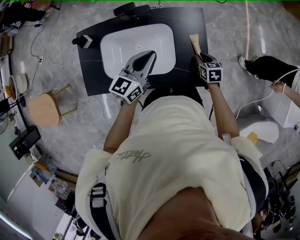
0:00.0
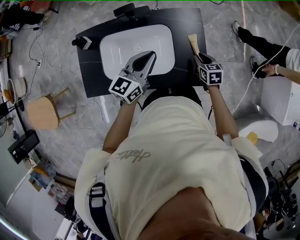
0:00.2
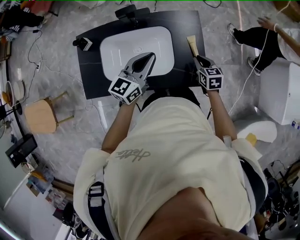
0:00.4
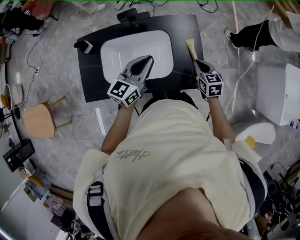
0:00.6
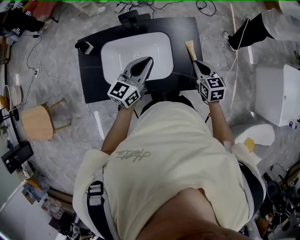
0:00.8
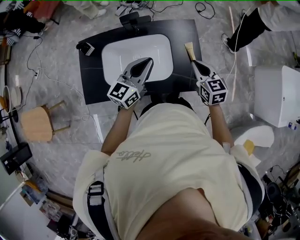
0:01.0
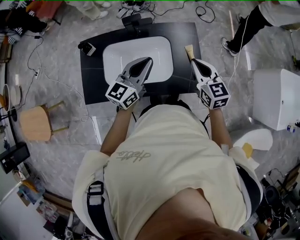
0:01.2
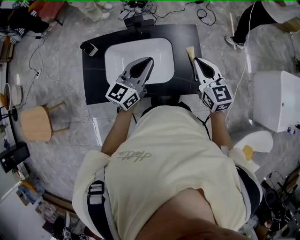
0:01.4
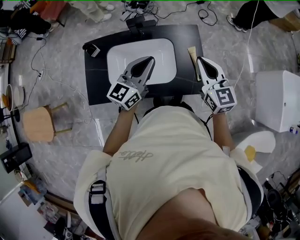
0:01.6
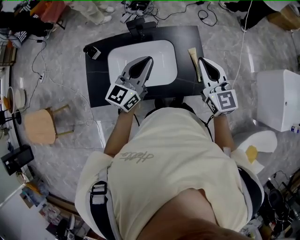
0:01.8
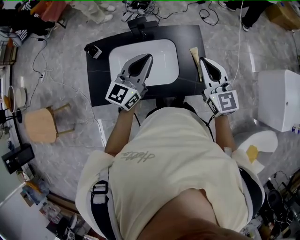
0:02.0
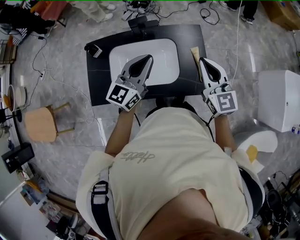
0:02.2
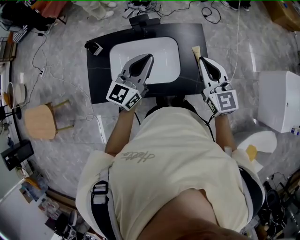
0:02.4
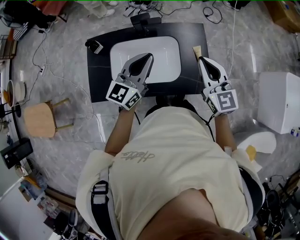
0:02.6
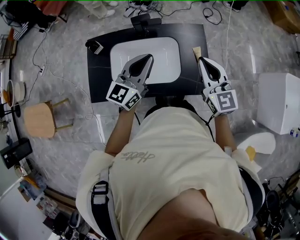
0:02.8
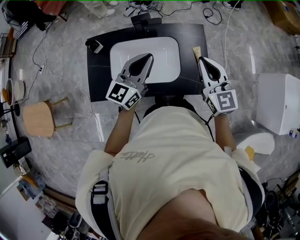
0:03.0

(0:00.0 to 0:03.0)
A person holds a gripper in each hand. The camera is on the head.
0:00.0 - 0:01.6: The left gripper shifts roughly 10 cm upward and backward; the right gripper goes approximately 30 cm upward, and tips its fingers upward by approximately 40 degrees.
0:01.6 - 0:03.0: The grippers stay close to where they were, moving slightly.

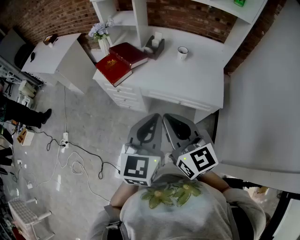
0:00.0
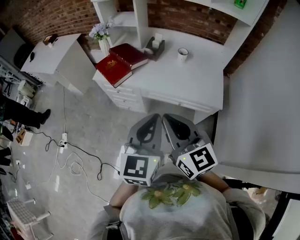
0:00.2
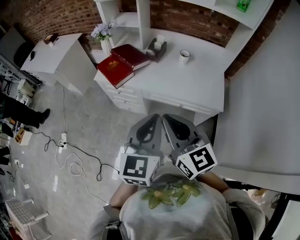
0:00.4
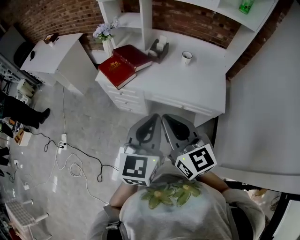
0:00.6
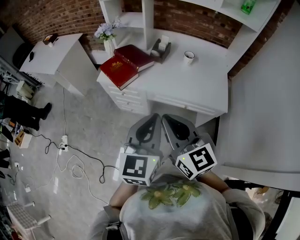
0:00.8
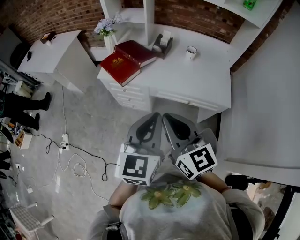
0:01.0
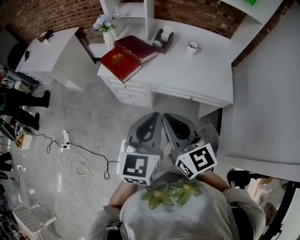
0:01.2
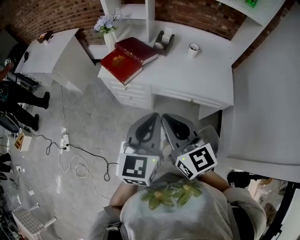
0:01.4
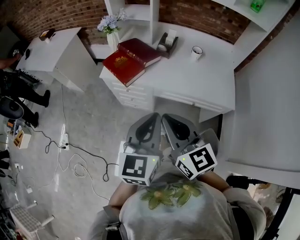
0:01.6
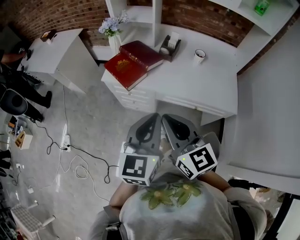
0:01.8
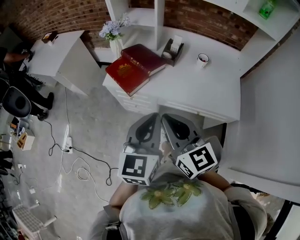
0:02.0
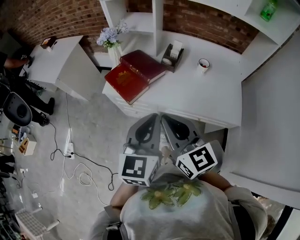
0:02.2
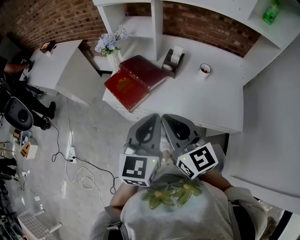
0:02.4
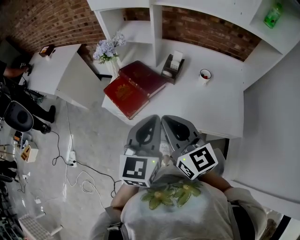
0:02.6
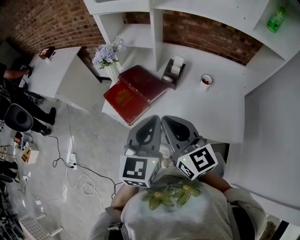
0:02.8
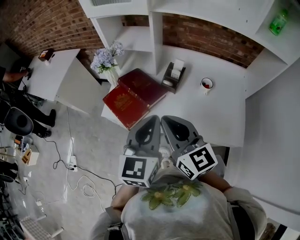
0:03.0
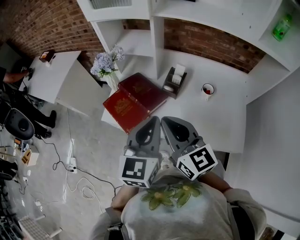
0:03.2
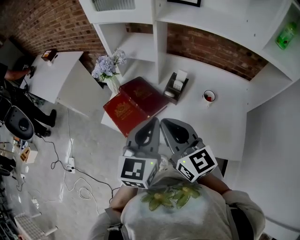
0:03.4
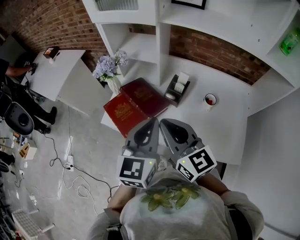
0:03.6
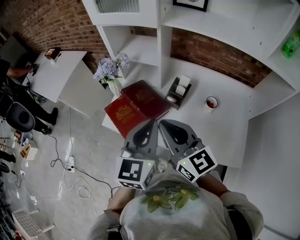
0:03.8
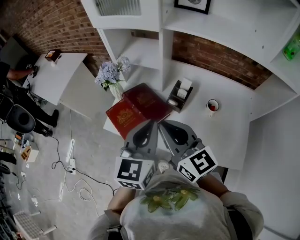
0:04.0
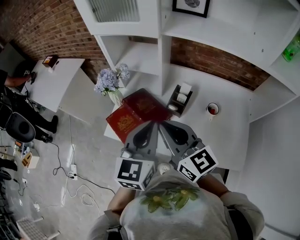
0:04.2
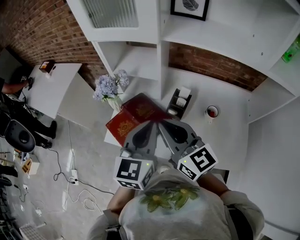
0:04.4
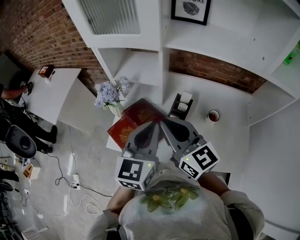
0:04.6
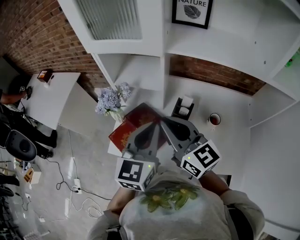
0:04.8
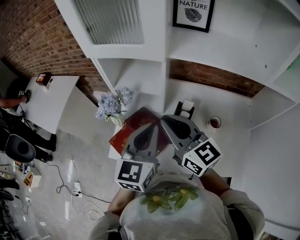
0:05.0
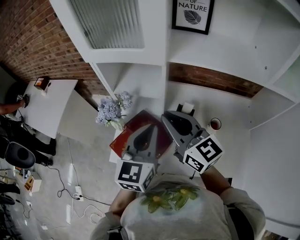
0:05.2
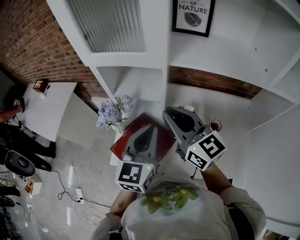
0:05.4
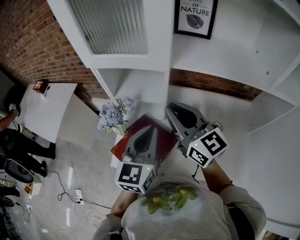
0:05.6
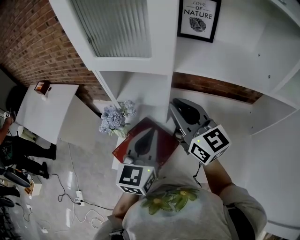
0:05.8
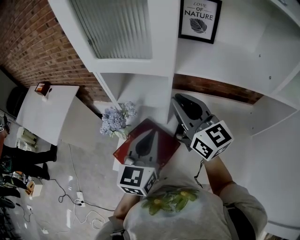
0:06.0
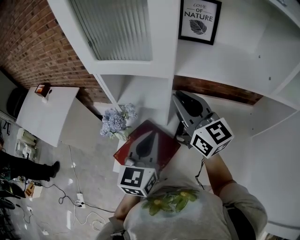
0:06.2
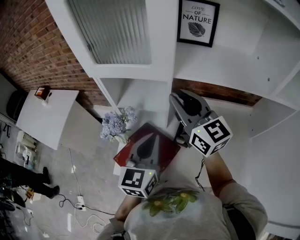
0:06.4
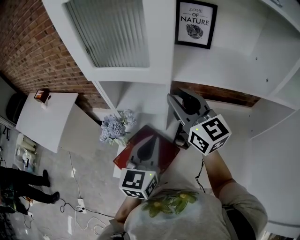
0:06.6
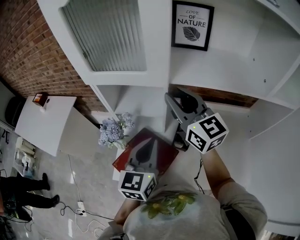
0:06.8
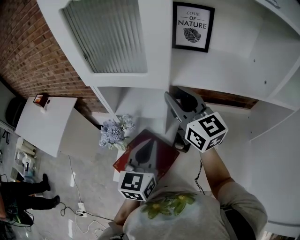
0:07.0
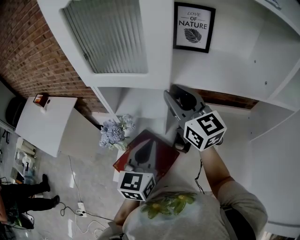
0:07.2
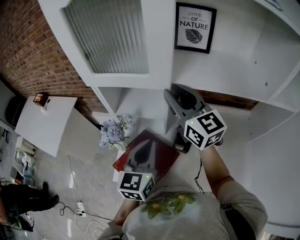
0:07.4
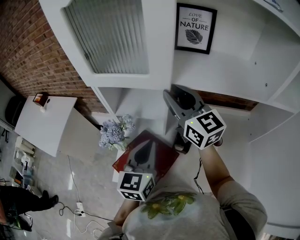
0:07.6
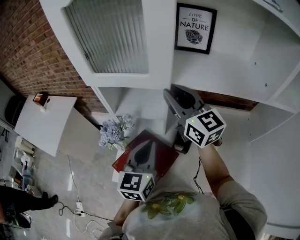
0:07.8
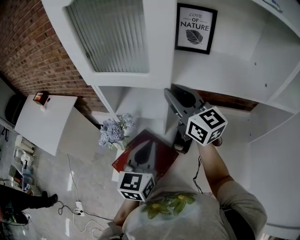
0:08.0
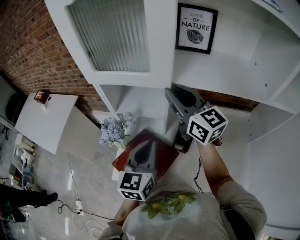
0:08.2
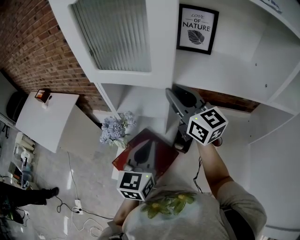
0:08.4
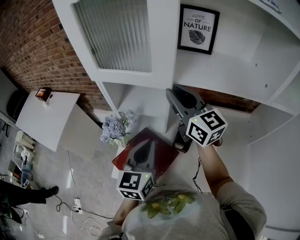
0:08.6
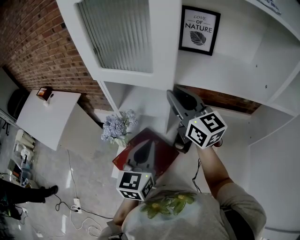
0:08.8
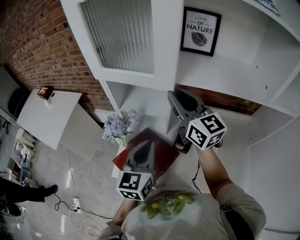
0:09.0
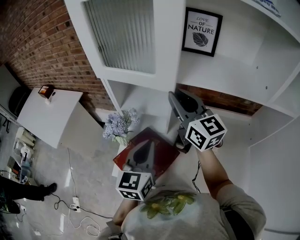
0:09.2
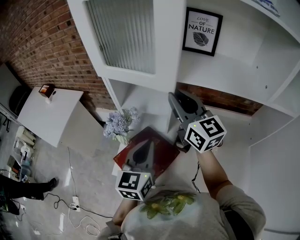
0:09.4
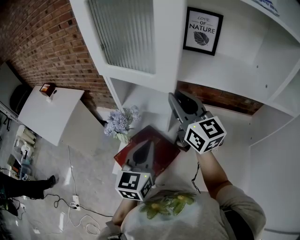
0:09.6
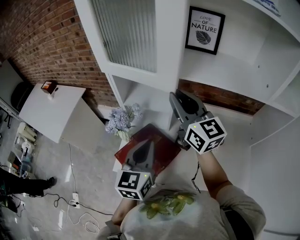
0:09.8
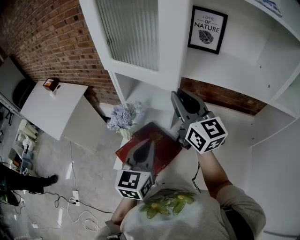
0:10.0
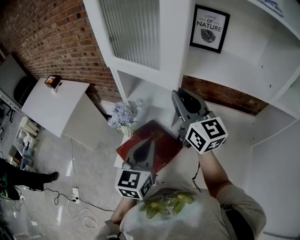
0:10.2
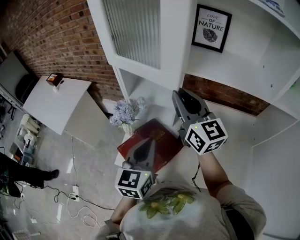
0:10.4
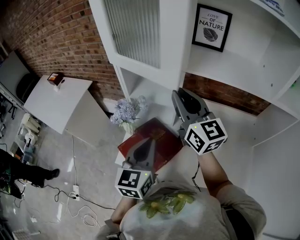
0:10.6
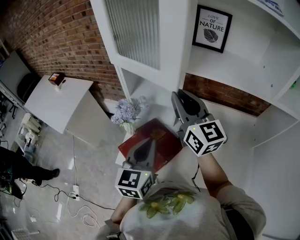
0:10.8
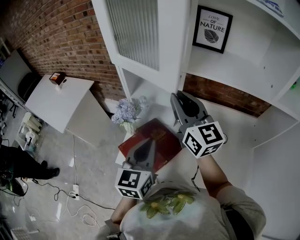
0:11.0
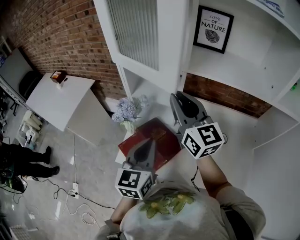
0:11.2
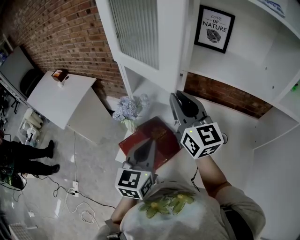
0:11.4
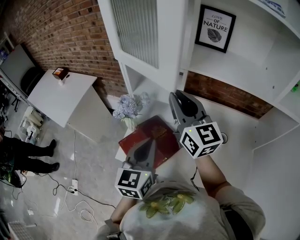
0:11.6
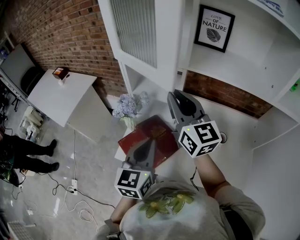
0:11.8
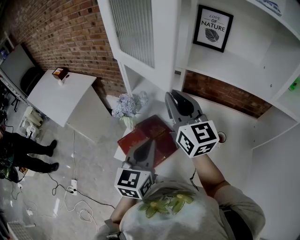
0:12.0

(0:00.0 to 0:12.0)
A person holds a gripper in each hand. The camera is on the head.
0:00.0 - 0:01.6: The two grippers go roughly 15 cm to the left and forward.
0:01.6 - 0:03.0: The grippers both shift forward by roughly 25 cm.
0:03.0 - 0:04.4: The grippers both shift forward by some 15 cm.
0:04.4 - 0:06.0: The left gripper heads forward, covering roughly 10 cm. The right gripper moves forward and upward, approximately 20 cm.
0:06.0 - 0:07.6: The right gripper goes roughly 5 cm forward.
0:07.6 - 0:09.0: The grippers stay close to where they were, moving slightly.
0:09.0 - 0:10.4: The left gripper moves about 5 cm, while the right gripper changes place by some 5 cm.
0:10.4 - 0:12.0: The grippers stay close to where they were, moving slightly.

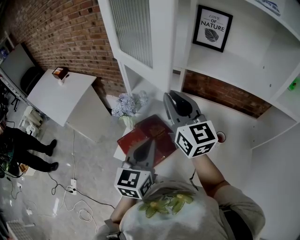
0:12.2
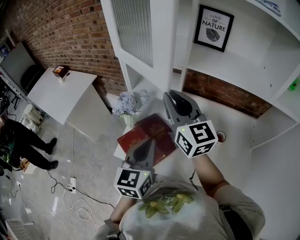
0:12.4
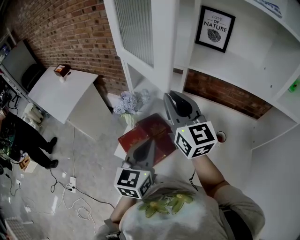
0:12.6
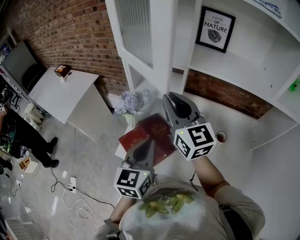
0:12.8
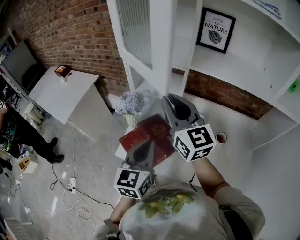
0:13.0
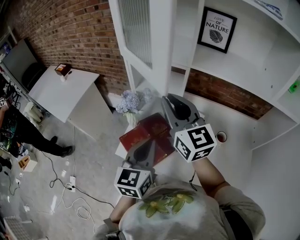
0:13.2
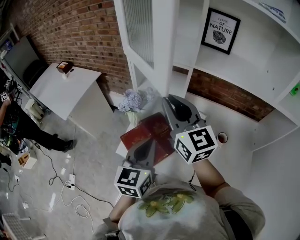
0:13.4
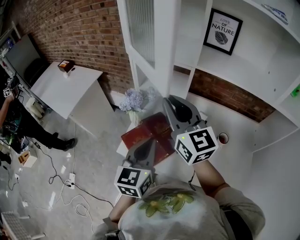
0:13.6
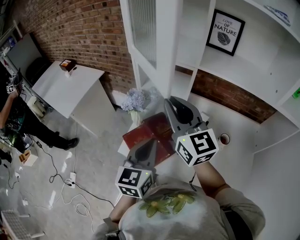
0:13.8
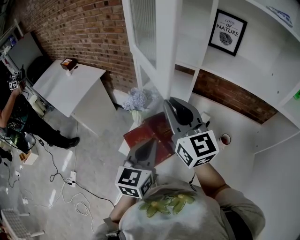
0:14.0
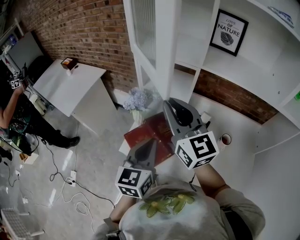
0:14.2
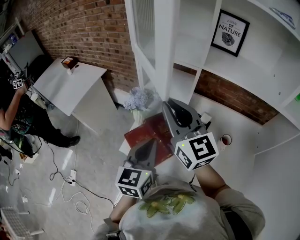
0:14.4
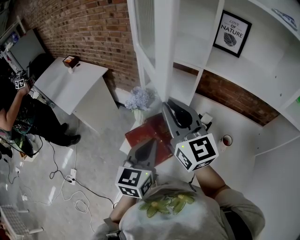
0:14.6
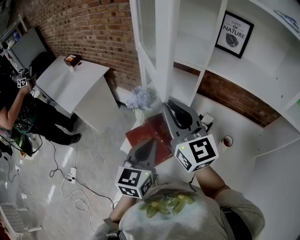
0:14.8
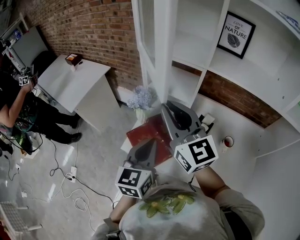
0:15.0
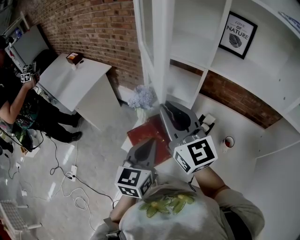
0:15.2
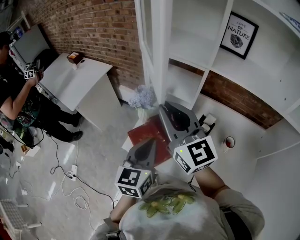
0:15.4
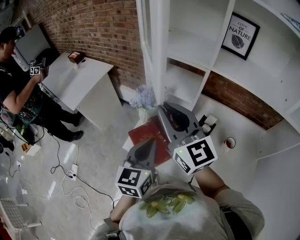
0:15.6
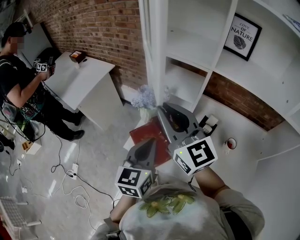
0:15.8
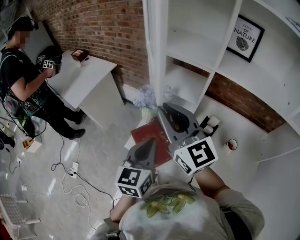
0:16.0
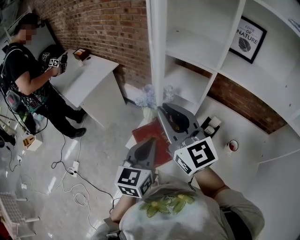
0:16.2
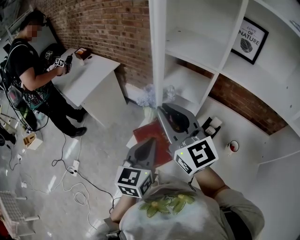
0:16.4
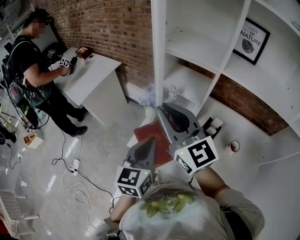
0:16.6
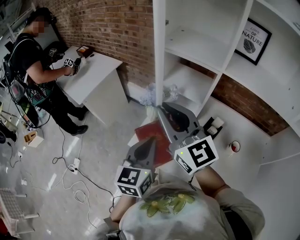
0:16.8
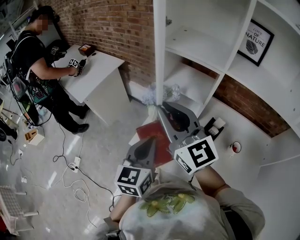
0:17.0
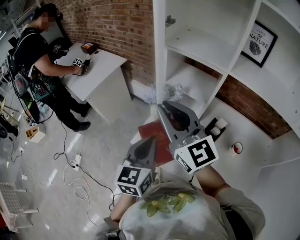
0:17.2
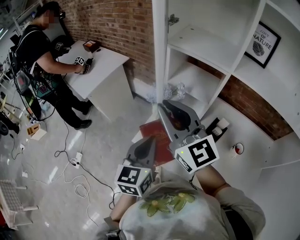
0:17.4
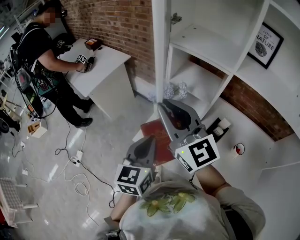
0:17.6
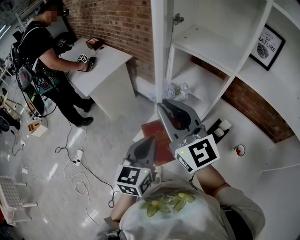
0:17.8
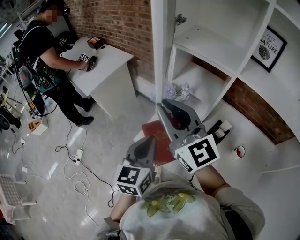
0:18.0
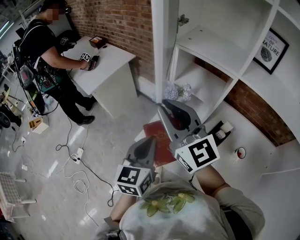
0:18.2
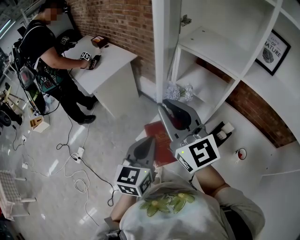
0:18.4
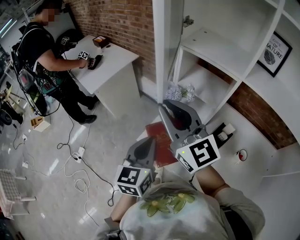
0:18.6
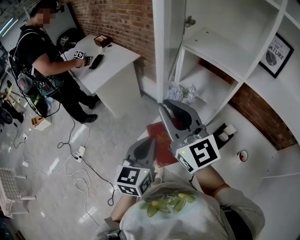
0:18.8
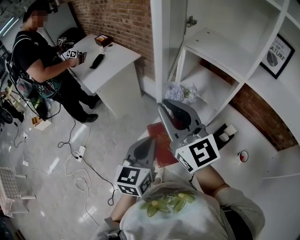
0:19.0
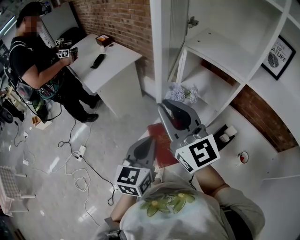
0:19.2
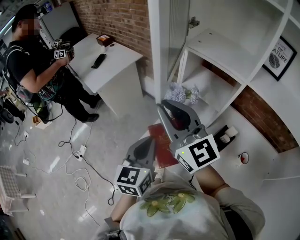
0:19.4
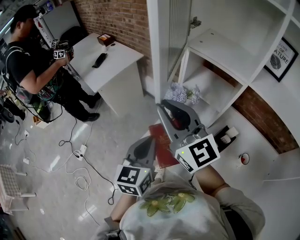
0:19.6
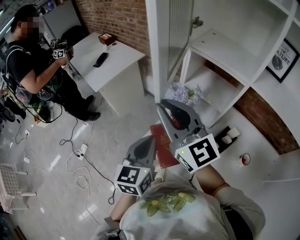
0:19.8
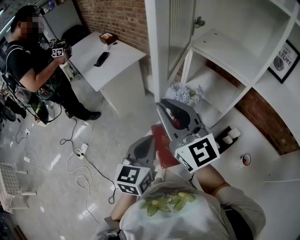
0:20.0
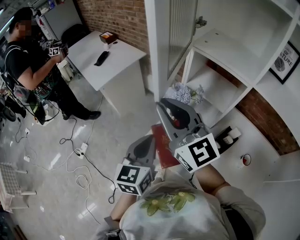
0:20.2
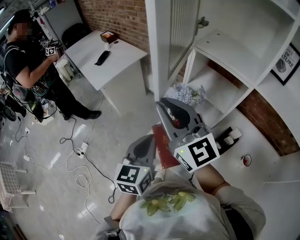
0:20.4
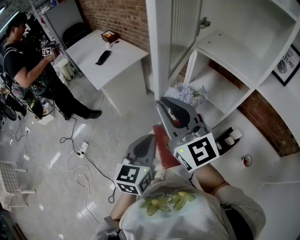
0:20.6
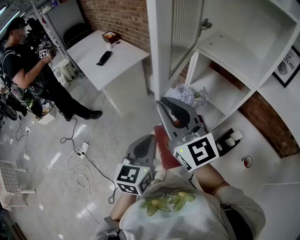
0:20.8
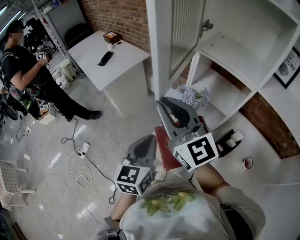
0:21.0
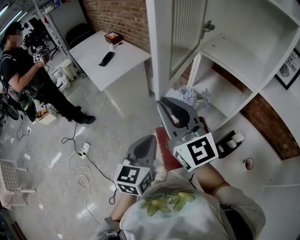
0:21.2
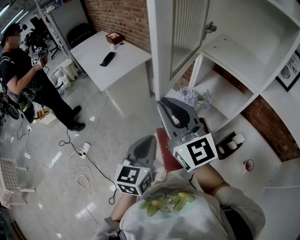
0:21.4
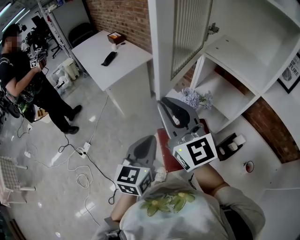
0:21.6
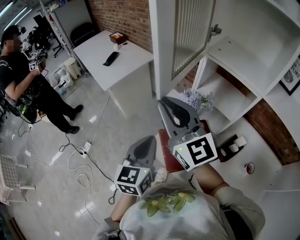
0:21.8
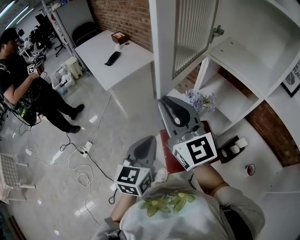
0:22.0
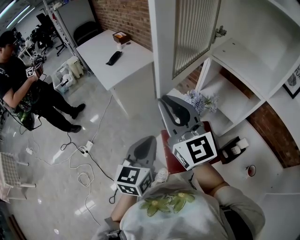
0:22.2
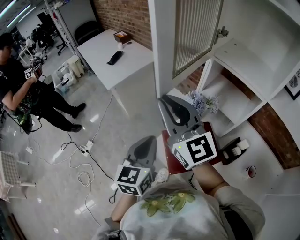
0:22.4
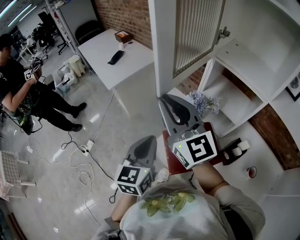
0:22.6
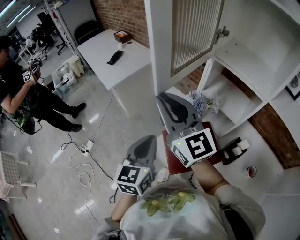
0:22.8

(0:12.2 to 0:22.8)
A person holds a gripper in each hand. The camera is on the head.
0:12.2 - 0:13.8: The right gripper ends up roughly 5 cm from where it was.
0:13.8 - 0:15.2: The grippers move only a little.
0:15.2 - 0:16.8: The grippers make only small movements.
0:16.8 - 0:18.2: The grippers stay close to where they were, moving slightly.
0:18.2 - 0:19.8: The grippers stay close to where they were, moving slightly.
0:19.8 - 0:21.2: The grippers move only a little.
0:21.2 - 0:22.8: The grippers stay close to where they were, moving slightly.
